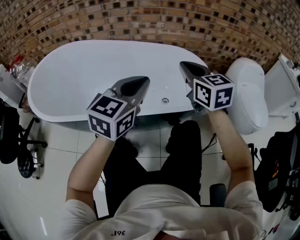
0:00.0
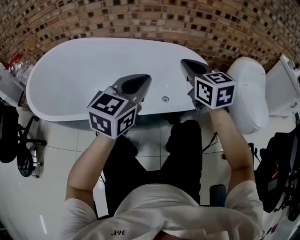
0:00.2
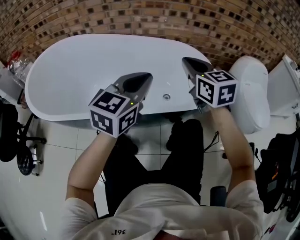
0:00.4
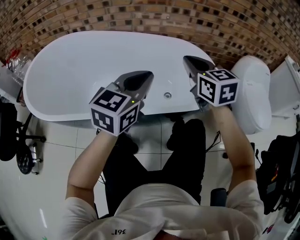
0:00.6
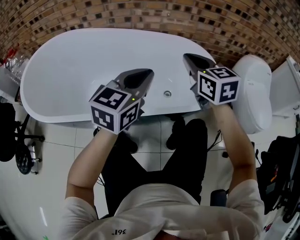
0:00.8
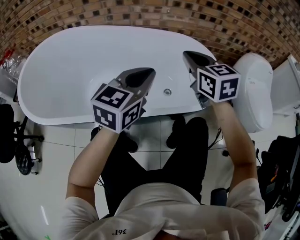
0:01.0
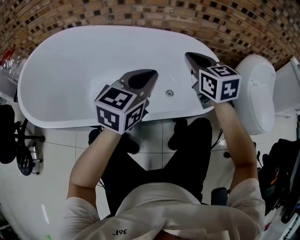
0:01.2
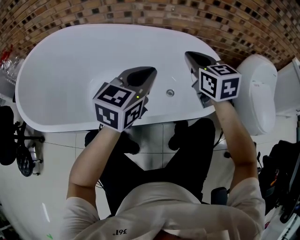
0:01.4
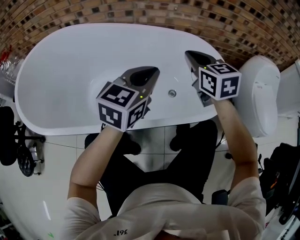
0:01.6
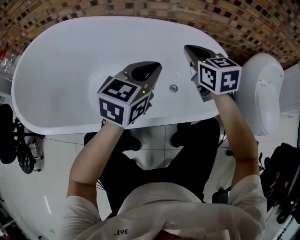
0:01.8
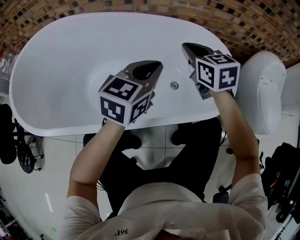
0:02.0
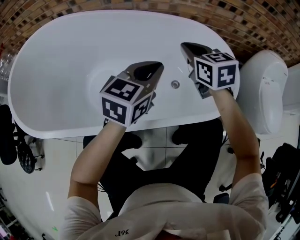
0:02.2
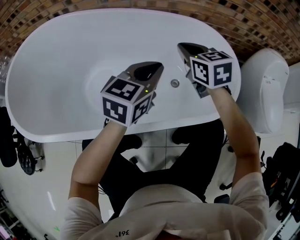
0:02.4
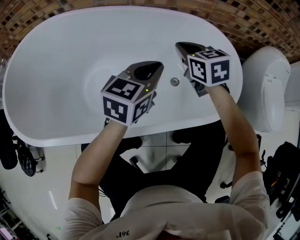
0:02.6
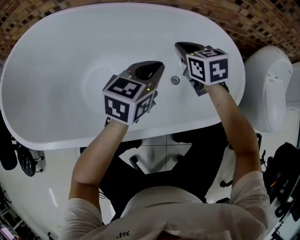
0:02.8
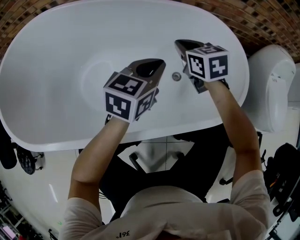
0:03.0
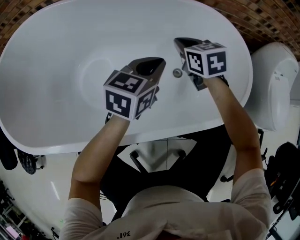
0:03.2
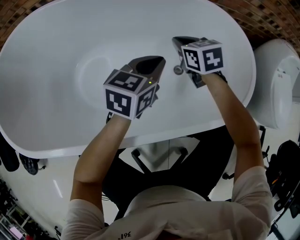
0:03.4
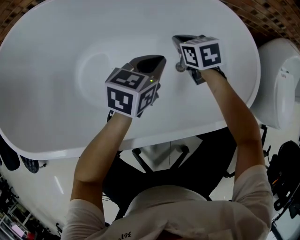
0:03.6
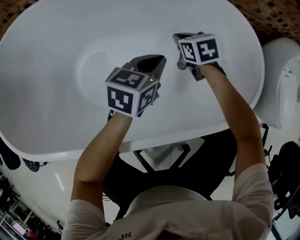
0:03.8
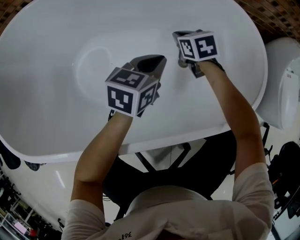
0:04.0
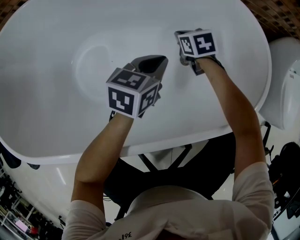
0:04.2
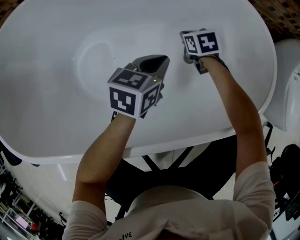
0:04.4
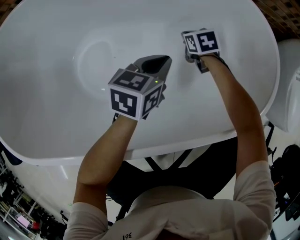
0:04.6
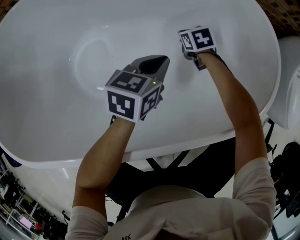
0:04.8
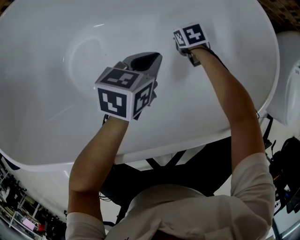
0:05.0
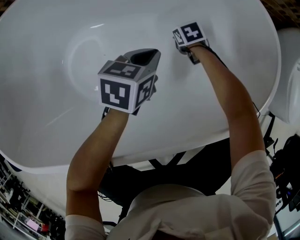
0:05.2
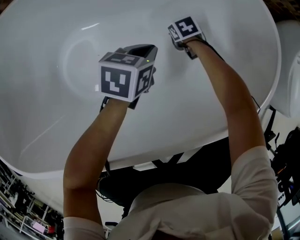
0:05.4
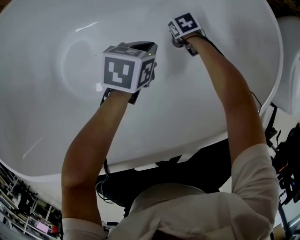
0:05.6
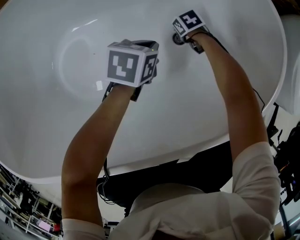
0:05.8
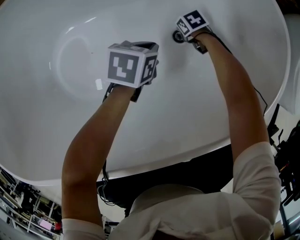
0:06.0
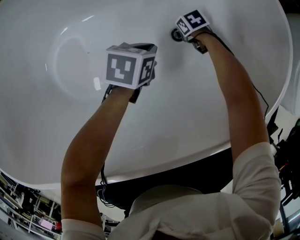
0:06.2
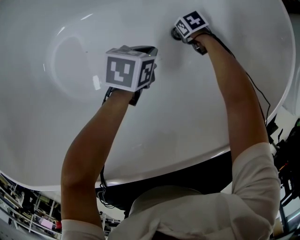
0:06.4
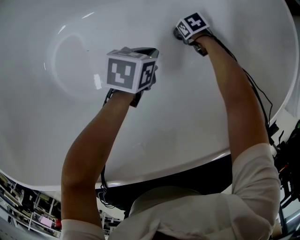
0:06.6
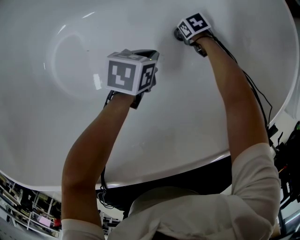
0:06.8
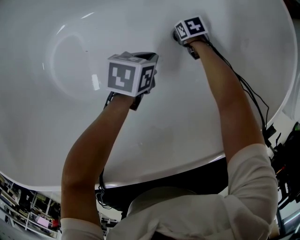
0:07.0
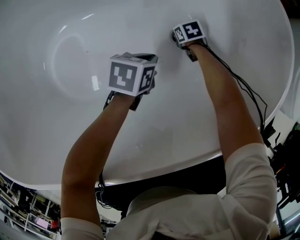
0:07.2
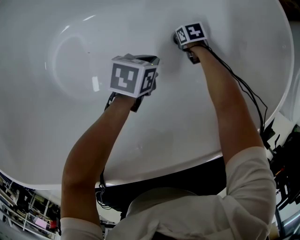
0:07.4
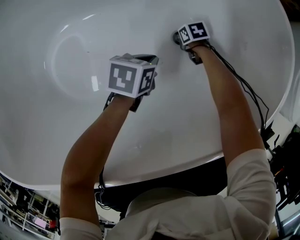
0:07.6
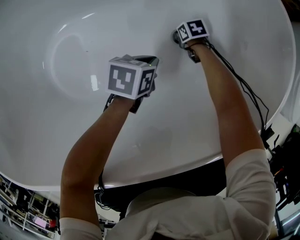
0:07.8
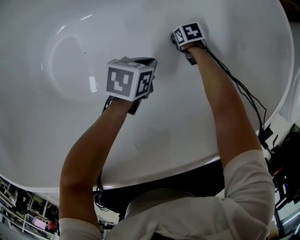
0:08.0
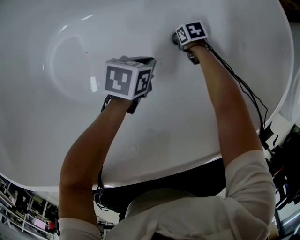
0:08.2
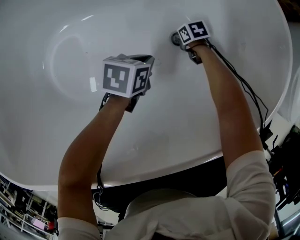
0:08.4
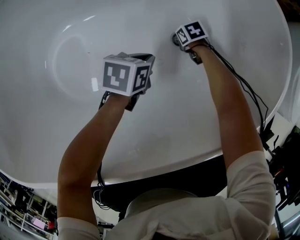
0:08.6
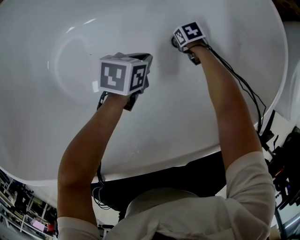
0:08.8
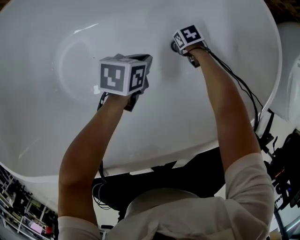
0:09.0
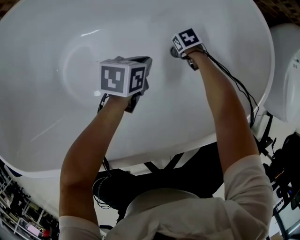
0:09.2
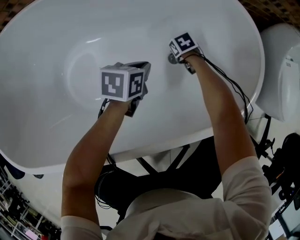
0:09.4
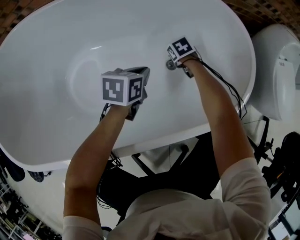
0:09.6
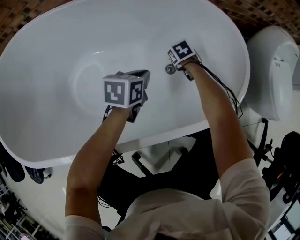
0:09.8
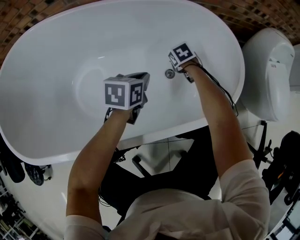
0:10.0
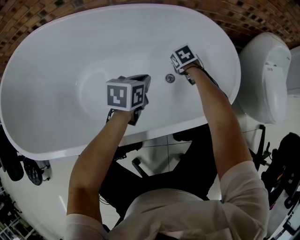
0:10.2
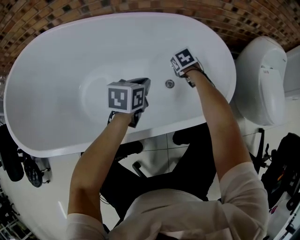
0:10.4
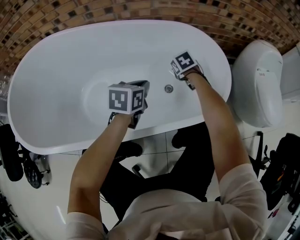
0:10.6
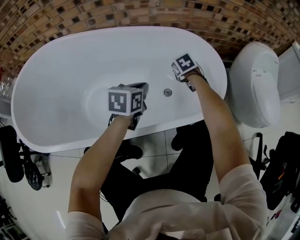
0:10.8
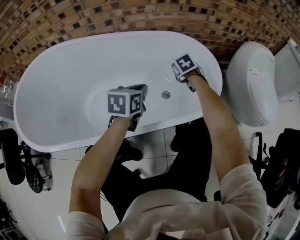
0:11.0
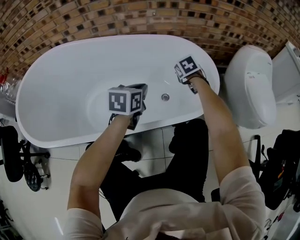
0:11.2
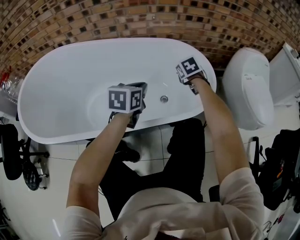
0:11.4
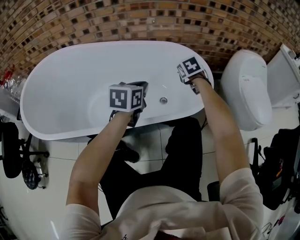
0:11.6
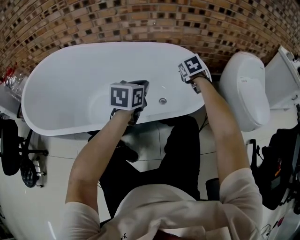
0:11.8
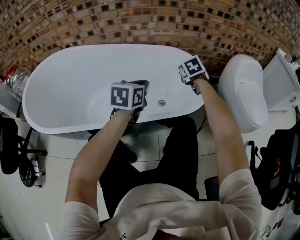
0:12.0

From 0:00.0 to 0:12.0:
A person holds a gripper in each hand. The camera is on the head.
From 0:00.0 to 0:01.6: Both grippers travel together forward and downward, some 15 cm.
From 0:01.6 to 0:03.0: Both grippers move downward and forward, roughly 15 cm.
From 0:03.0 to 0:04.4: The left gripper travels downward by some 15 cm. Meanwhile the right gripper shifts about 20 cm downward, and changes its angle by roughly 20 degrees.
From 0:04.4 to 0:06.0: The grippers both shift downward by roughly 15 cm. The left gripper rotates roughly 20 degrees, while the right gripper changes its angle by about 20 degrees.
From 0:06.0 to 0:07.6: The left gripper moves roughly 5 cm. The right gripper ends up some 5 cm from where it was.
From 0:07.6 to 0:09.0: The left gripper moves roughly 5 cm. Meanwhile the right gripper ends up about 5 cm from where it was.
From 0:09.0 to 0:10.4: Both grippers travel together upward, some 25 cm. The right gripper rotates approximately 20 degrees.
From 0:10.4 to 0:12.0: The left gripper heads upward and backward, covering approximately 20 cm, while the right gripper moves upward, about 25 cm.

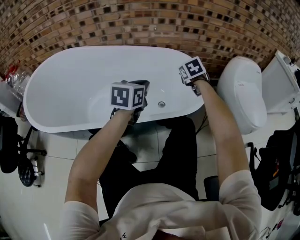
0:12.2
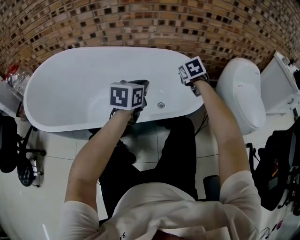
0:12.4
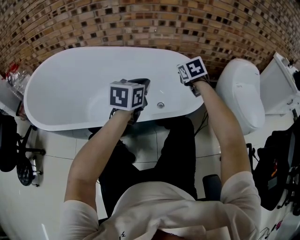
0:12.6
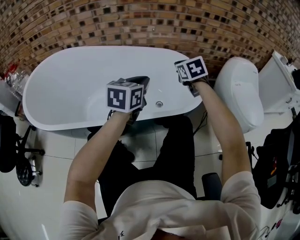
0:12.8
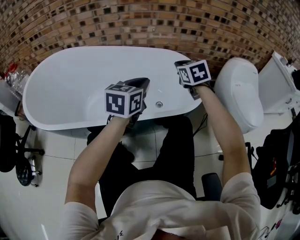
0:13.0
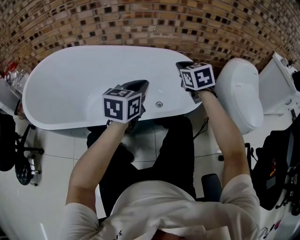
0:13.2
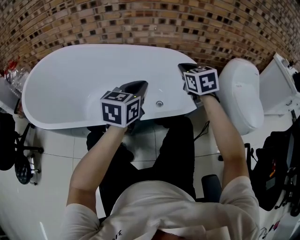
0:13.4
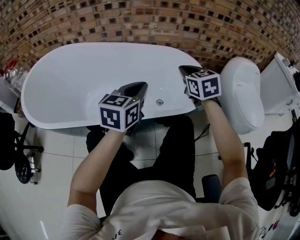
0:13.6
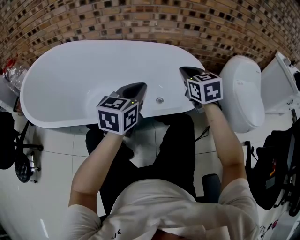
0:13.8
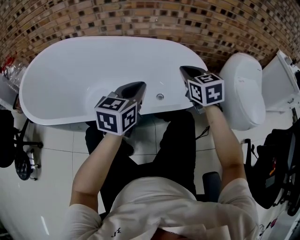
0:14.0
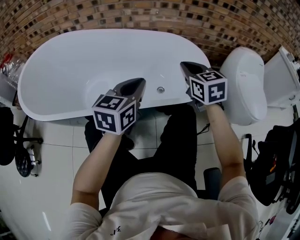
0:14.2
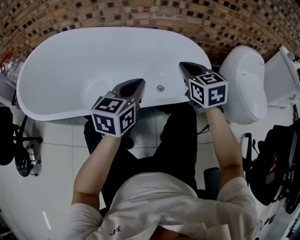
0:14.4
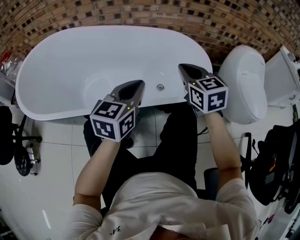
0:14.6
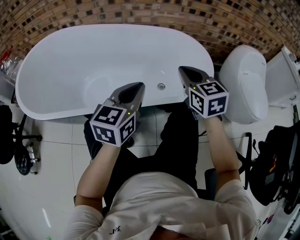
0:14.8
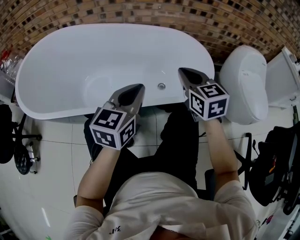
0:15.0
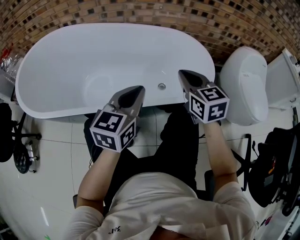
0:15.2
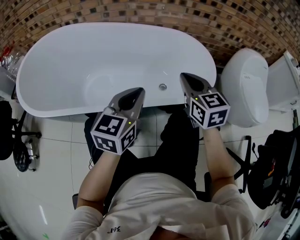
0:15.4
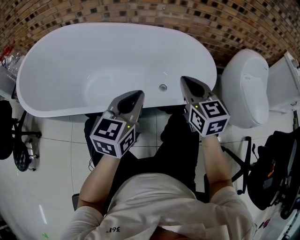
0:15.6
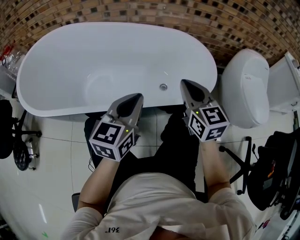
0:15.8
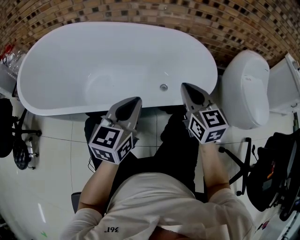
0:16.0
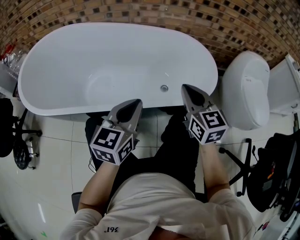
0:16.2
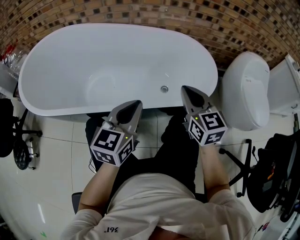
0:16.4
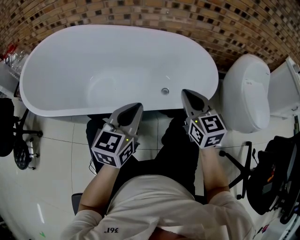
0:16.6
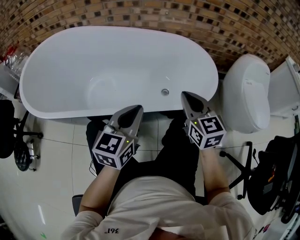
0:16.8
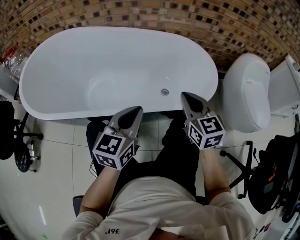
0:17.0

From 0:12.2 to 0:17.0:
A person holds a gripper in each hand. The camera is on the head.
From 0:12.2 to 0:13.8: The left gripper shifts about 5 cm backward; the right gripper is displaced backward and upward by approximately 15 cm, and changes its angle by roughly 20 degrees.
From 0:13.8 to 0:15.4: The left gripper shifts by roughly 5 cm. The right gripper moves backward, some 5 cm.
From 0:15.4 to 0:17.0: The grippers move only a little.

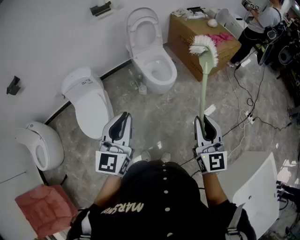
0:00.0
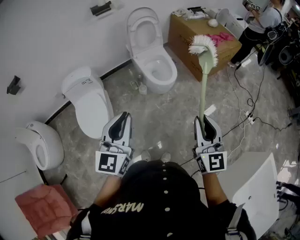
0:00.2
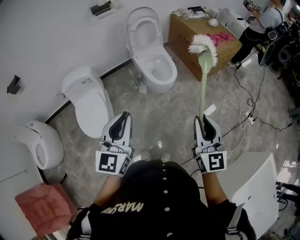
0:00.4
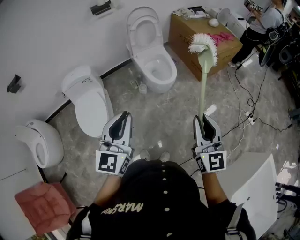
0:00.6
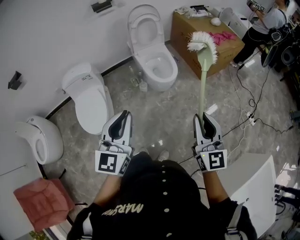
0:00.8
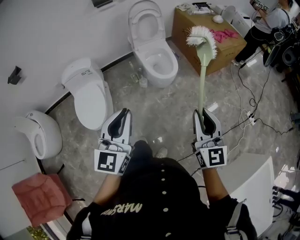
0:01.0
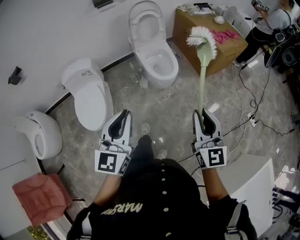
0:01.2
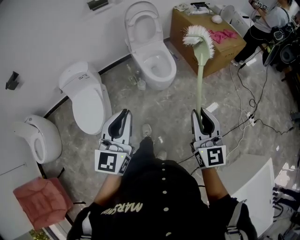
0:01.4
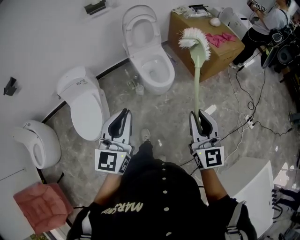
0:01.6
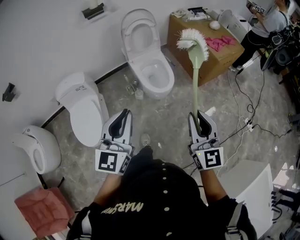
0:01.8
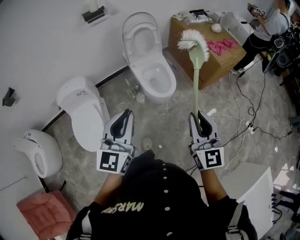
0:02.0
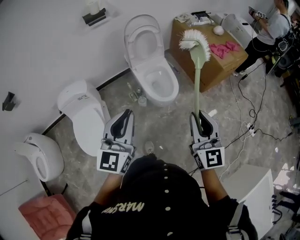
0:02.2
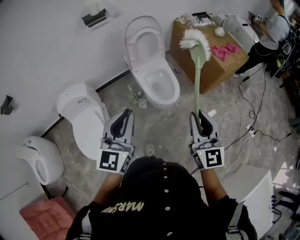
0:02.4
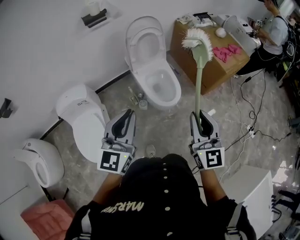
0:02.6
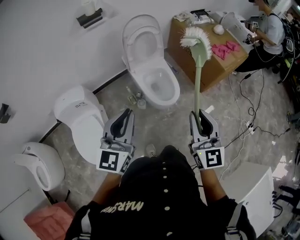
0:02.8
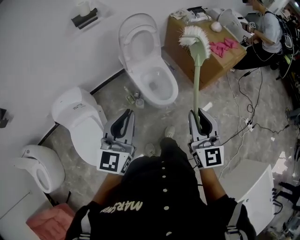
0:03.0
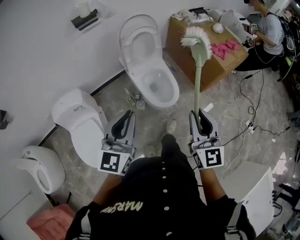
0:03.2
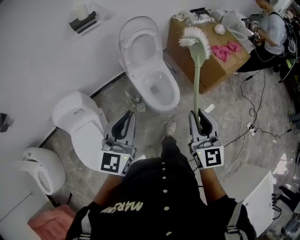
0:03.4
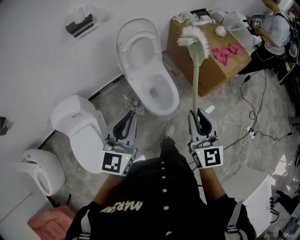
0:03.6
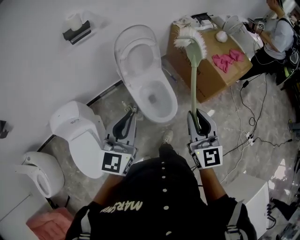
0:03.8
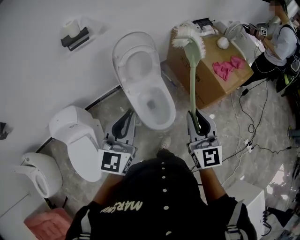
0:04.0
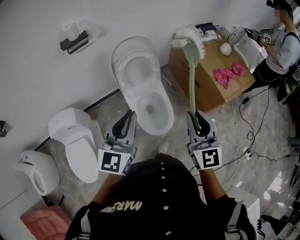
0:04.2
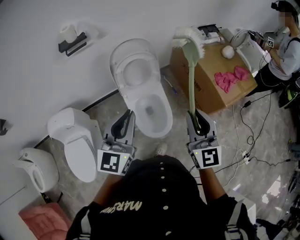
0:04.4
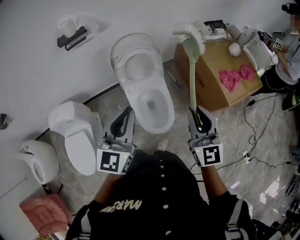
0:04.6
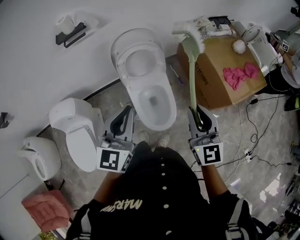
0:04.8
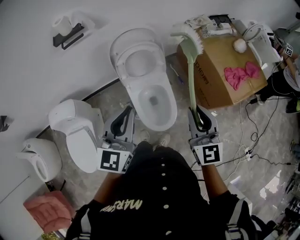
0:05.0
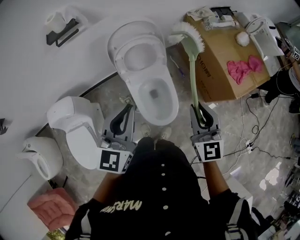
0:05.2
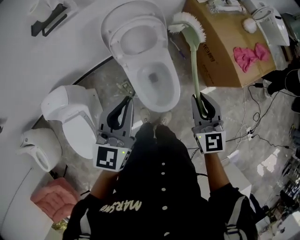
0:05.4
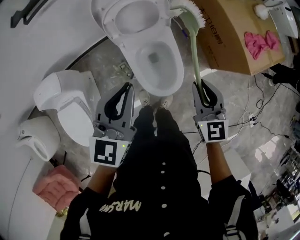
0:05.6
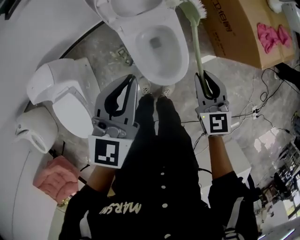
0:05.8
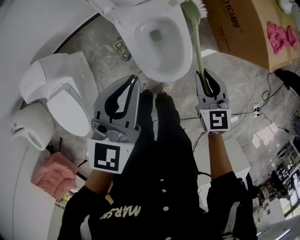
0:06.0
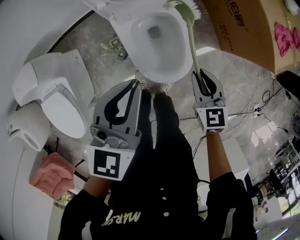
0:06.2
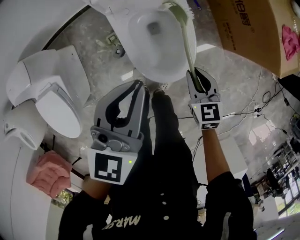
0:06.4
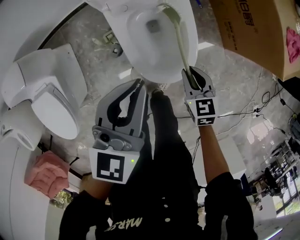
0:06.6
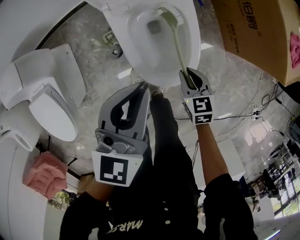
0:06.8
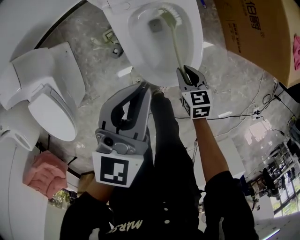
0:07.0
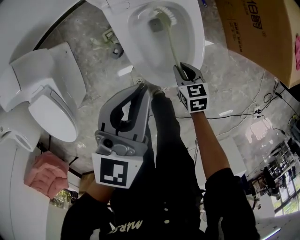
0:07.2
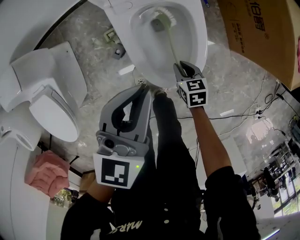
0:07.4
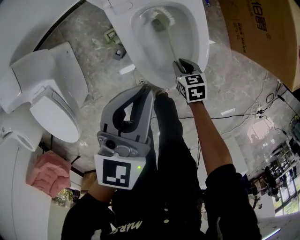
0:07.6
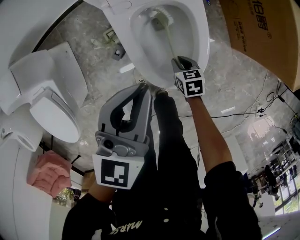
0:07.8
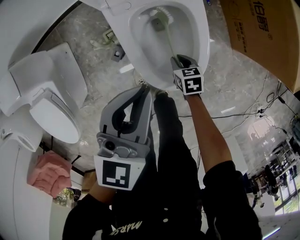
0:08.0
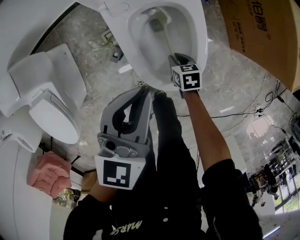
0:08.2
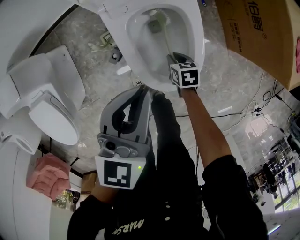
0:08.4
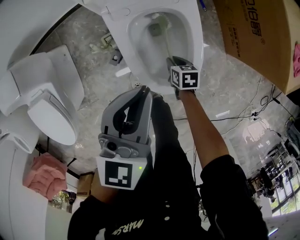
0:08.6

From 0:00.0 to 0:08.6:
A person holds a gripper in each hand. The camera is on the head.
From 0:00.0 to 0:01.4: The right gripper shifts by about 5 cm. Meanwhile the left gripper shifts roughly 5 cm to the right.
From 0:01.4 to 0:02.8: The left gripper shifts some 25 cm forward. The right gripper travels forward and to the left by some 25 cm.
From 0:02.8 to 0:04.4: The right gripper is displaced forward by about 30 cm. The left gripper is displaced forward and to the right by roughly 30 cm.
From 0:04.4 to 0:05.8: Both grippers travel together downward and forward, about 30 cm. The right gripper tips its fingers downward by roughly 30 degrees.
From 0:05.8 to 0:07.2: The right gripper goes approximately 40 cm downward, and rotates approximately 30 degrees. The left gripper moves downward, some 20 cm.
From 0:07.2 to 0:08.6: The right gripper moves downward, some 10 cm.
